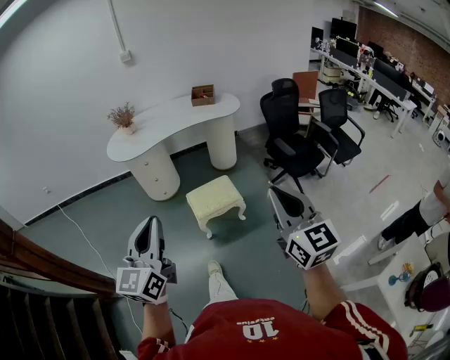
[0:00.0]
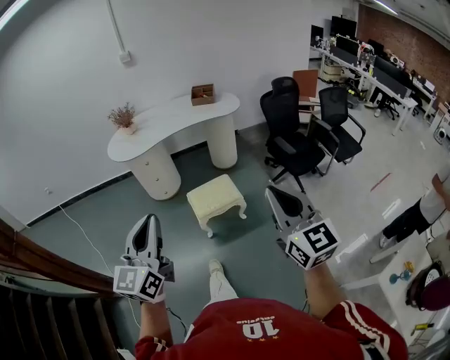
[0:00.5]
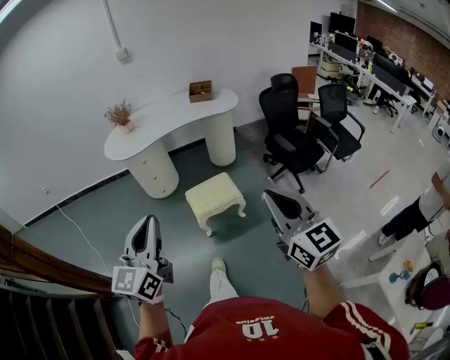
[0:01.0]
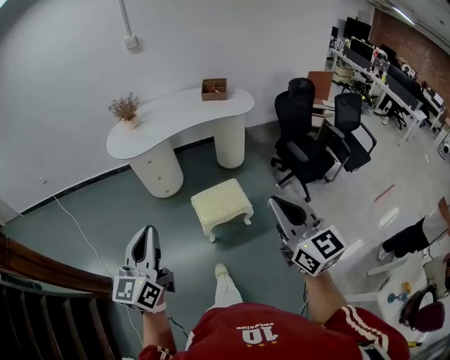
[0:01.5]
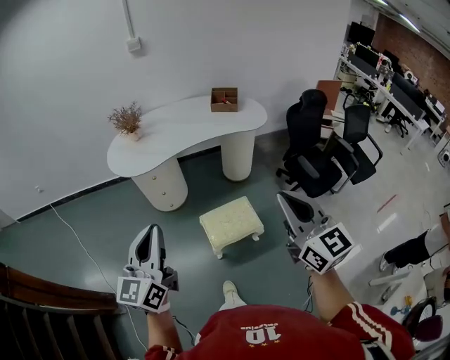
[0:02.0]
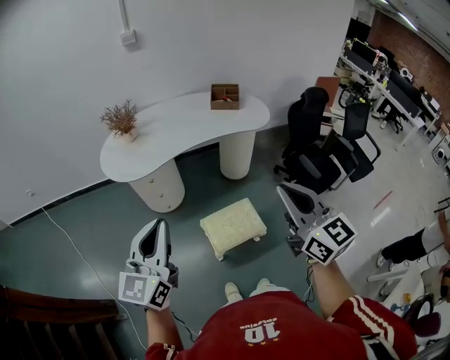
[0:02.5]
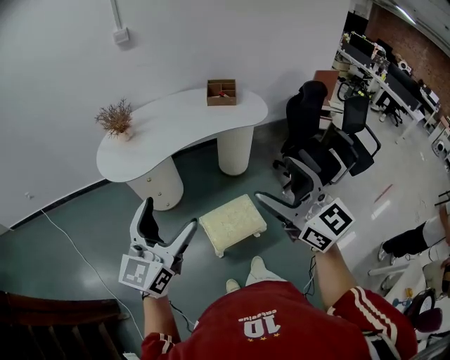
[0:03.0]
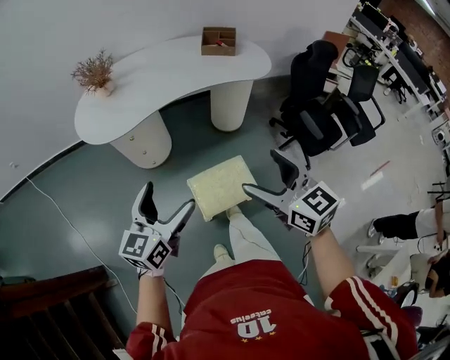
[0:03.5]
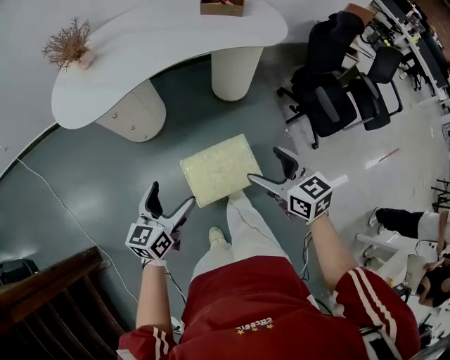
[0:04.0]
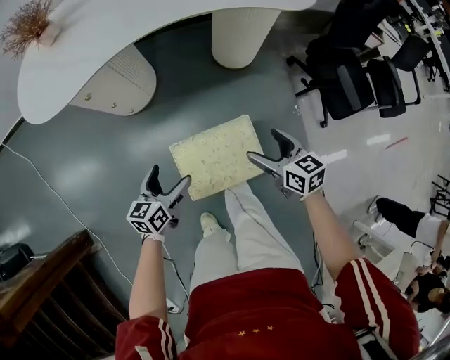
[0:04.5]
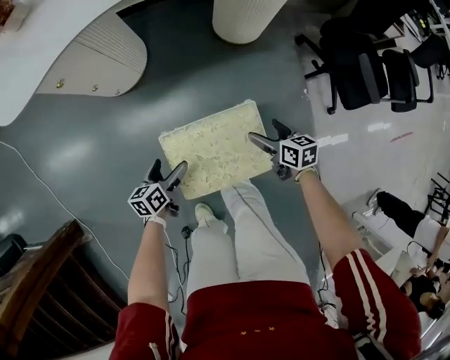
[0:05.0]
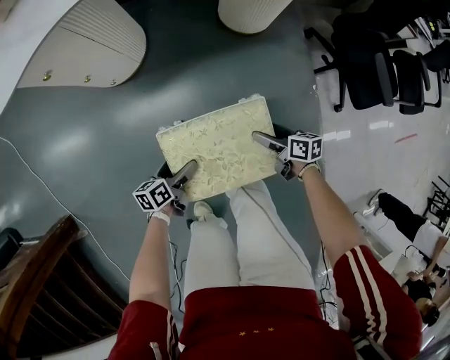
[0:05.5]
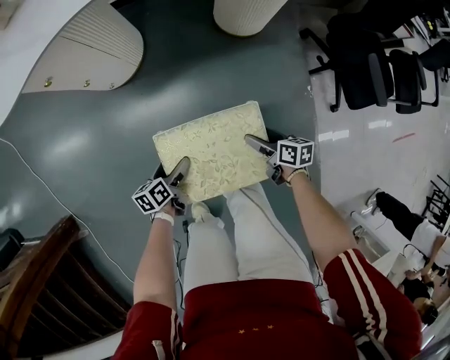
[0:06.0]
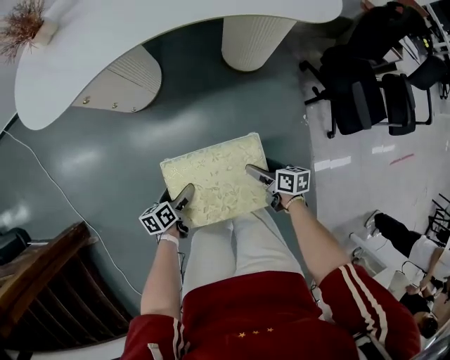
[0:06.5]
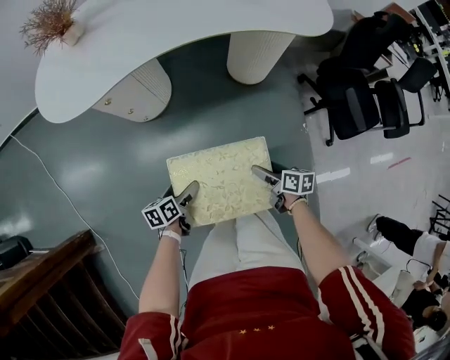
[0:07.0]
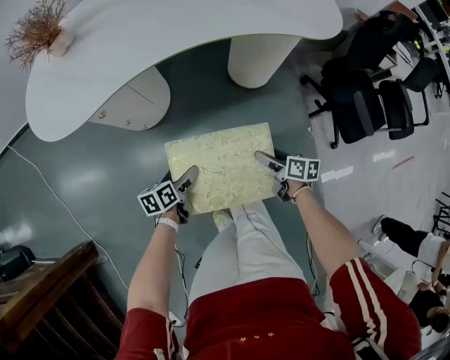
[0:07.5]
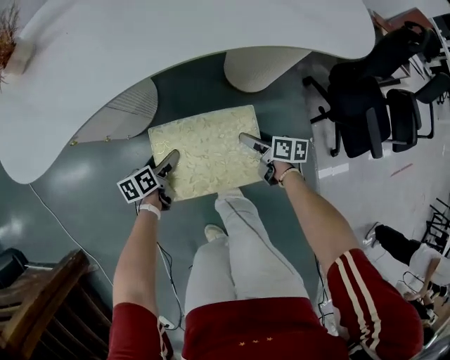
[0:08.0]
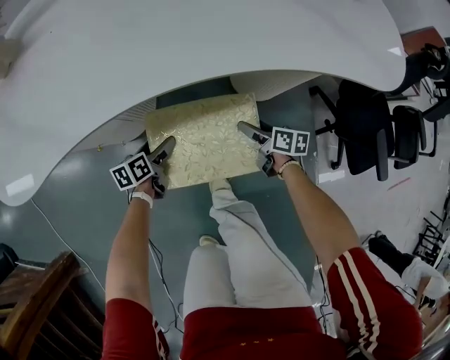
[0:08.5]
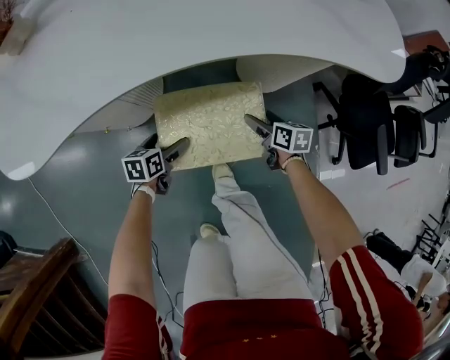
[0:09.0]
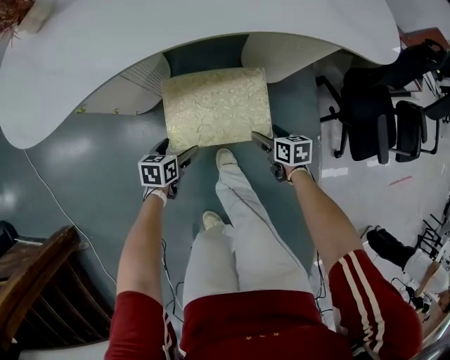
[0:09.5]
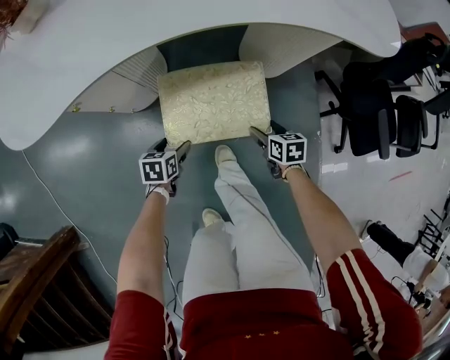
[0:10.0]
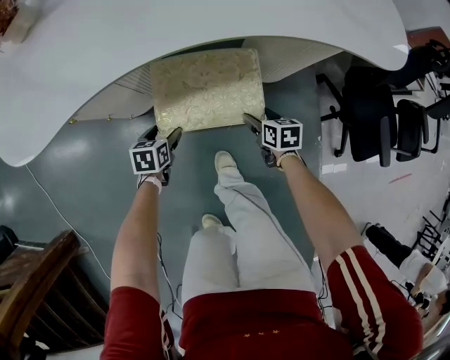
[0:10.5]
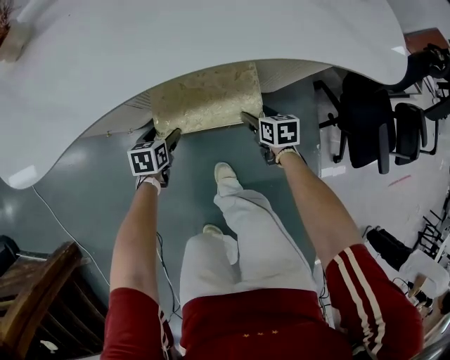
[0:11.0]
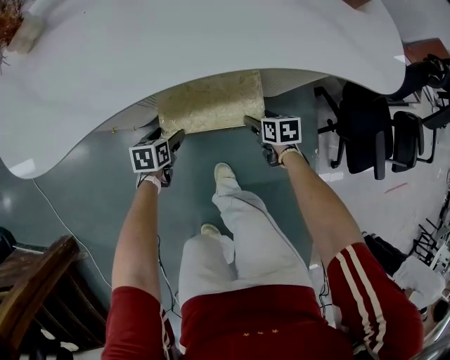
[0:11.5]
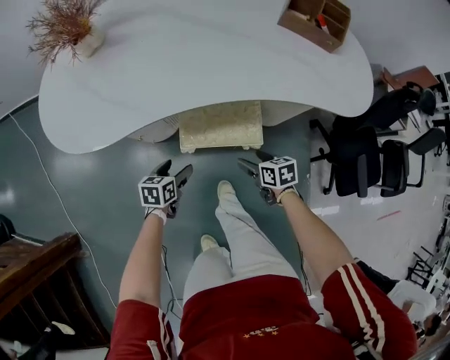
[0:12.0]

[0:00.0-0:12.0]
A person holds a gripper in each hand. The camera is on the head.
0:00.0 to 0:02.0: The two grippers go roughly 25 cm forward.
0:02.0 to 0:04.0: Both grippers move downward and forward, roughly 40 cm. The right gripper changes its angle by roughly 40 degrees, and opens up, while the left gripper rotates some 30 degrees, and opens.
0:04.0 to 0:06.0: The grippers both shift downward by some 50 cm. The right gripper changes its angle by approximately 40 degrees. The left gripper changes its angle by approximately 40 degrees.
0:06.0 to 0:08.0: Both grippers travel together forward, approximately 25 cm.
0:08.0 to 0:10.0: The right gripper goes forward and returns, some 10 cm each way, and turns by about 30 degrees, while the left gripper reaches approximately 10 cm forward, then returns, and rotates some 20 degrees.
0:10.0 to 0:12.0: The left gripper moves upward, approximately 15 cm. The right gripper moves upward and to the left, approximately 15 cm.

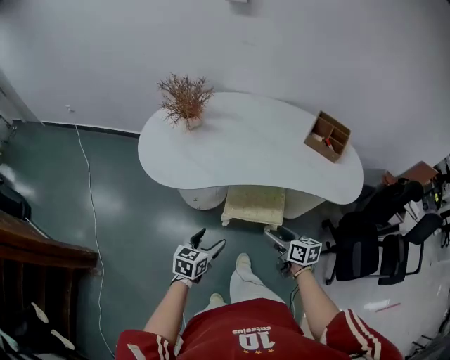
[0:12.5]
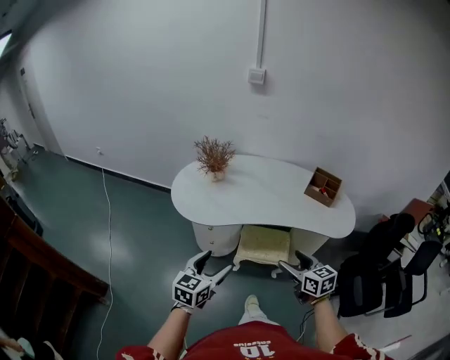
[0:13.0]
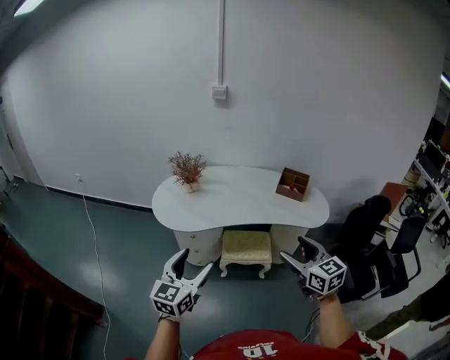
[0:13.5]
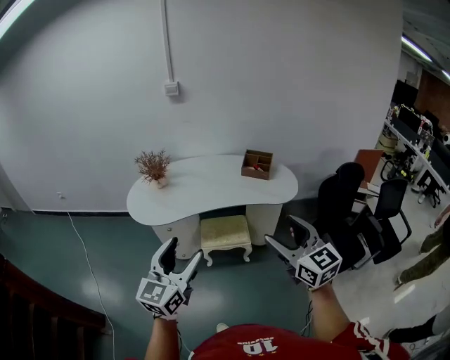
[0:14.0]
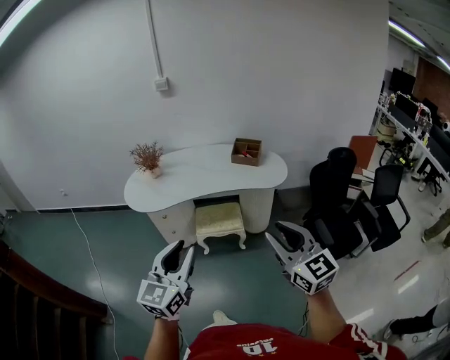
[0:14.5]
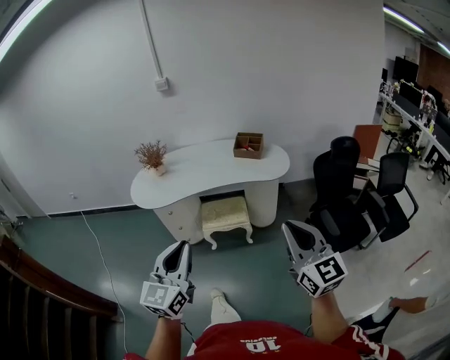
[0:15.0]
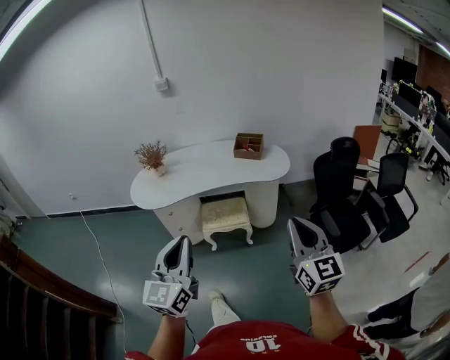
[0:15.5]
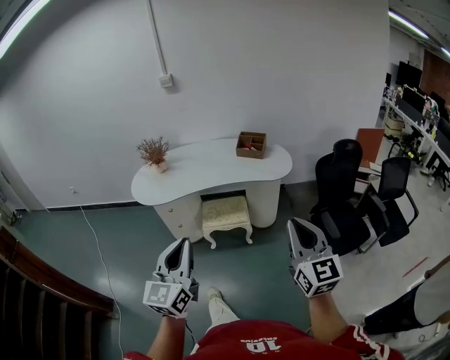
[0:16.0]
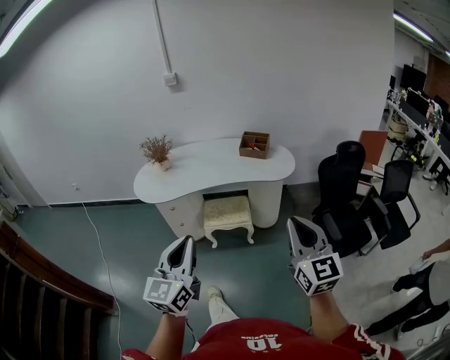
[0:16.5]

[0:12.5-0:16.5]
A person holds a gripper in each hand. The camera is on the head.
0:12.5 to 0:14.5: Both grippers travel together upward and backward, roughly 50 cm. The right gripper tilts its fingers about 30 degrees upward, and closes up. Meanwhile the left gripper points its fingers some 40 degrees further upward, and closes its fingers.
0:14.5 to 0:16.5: The right gripper moves to the right, approximately 5 cm.

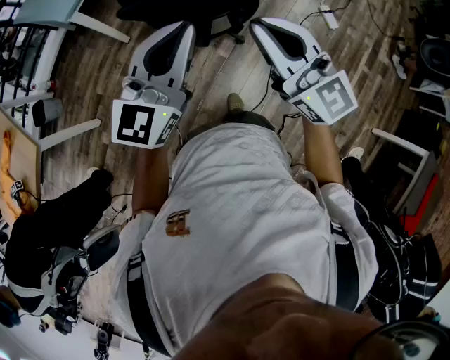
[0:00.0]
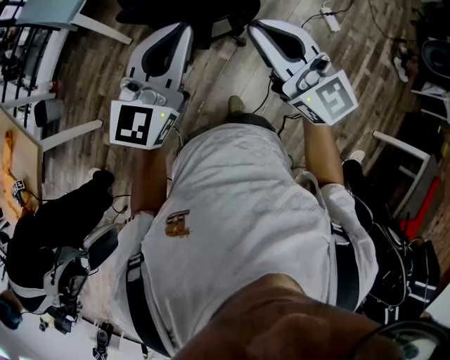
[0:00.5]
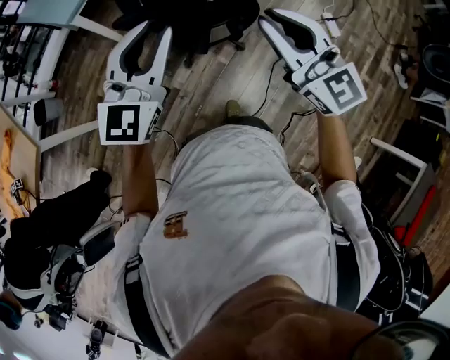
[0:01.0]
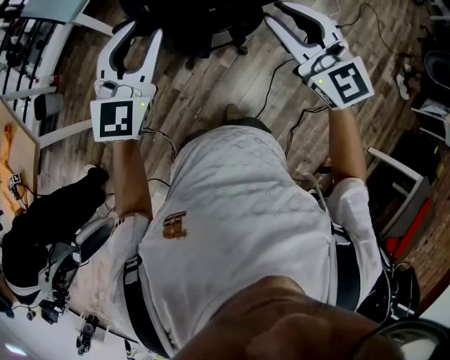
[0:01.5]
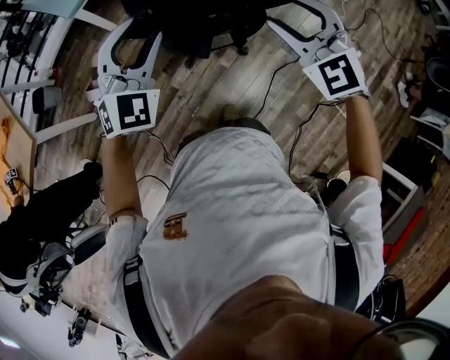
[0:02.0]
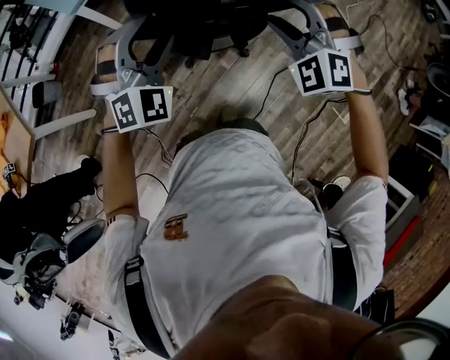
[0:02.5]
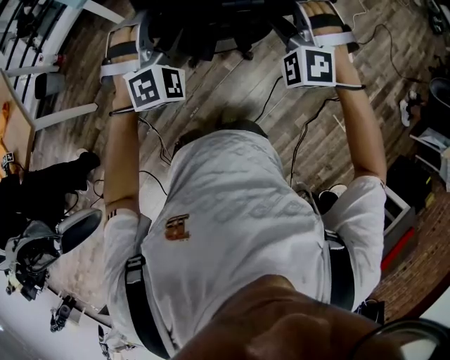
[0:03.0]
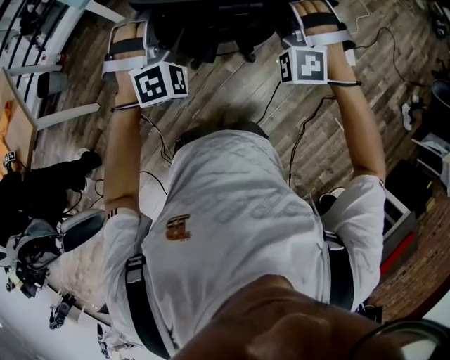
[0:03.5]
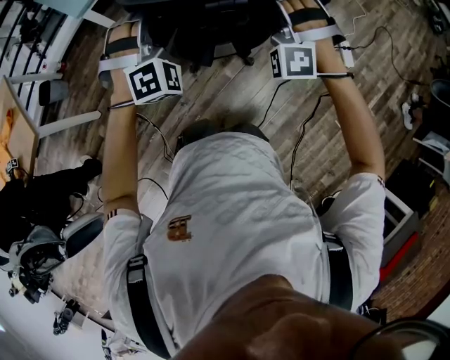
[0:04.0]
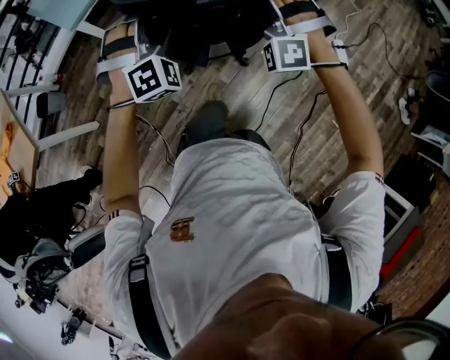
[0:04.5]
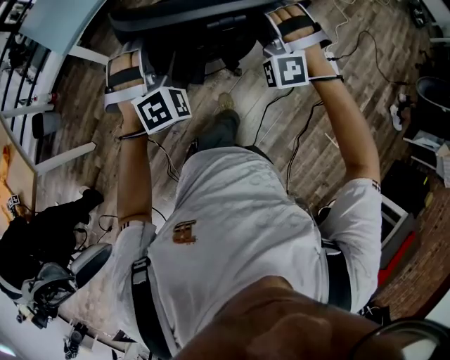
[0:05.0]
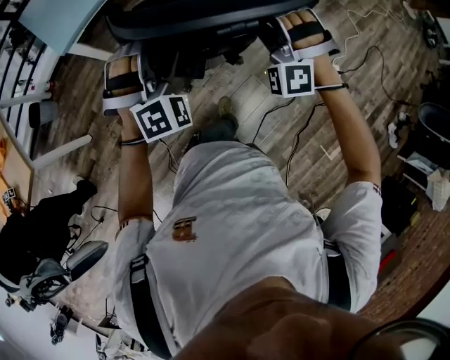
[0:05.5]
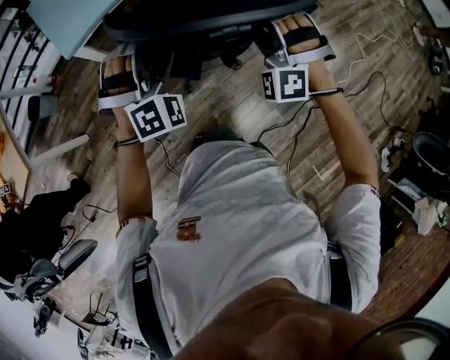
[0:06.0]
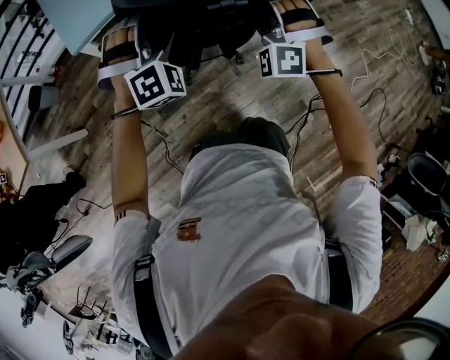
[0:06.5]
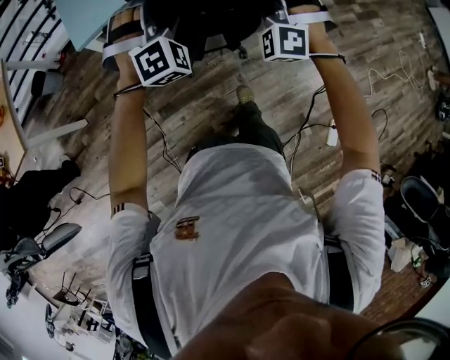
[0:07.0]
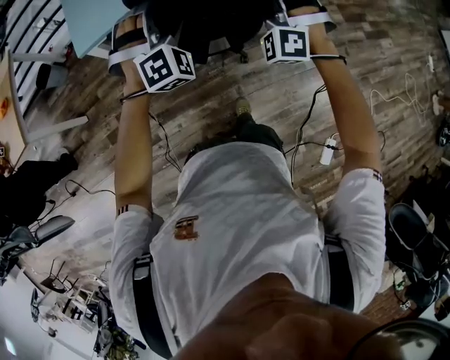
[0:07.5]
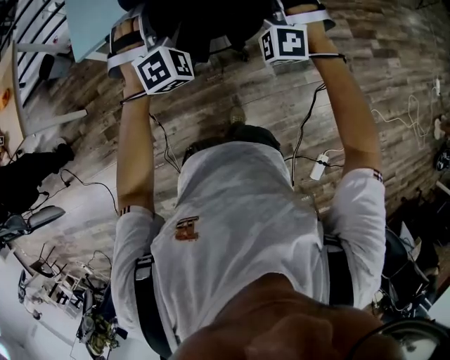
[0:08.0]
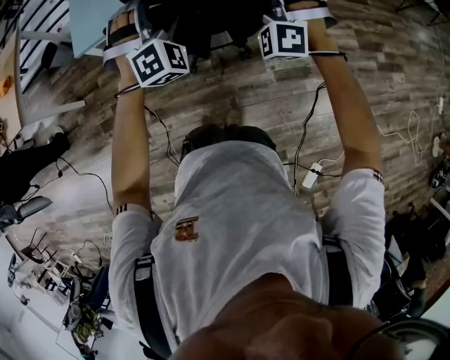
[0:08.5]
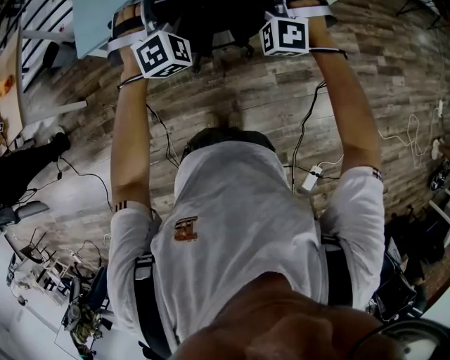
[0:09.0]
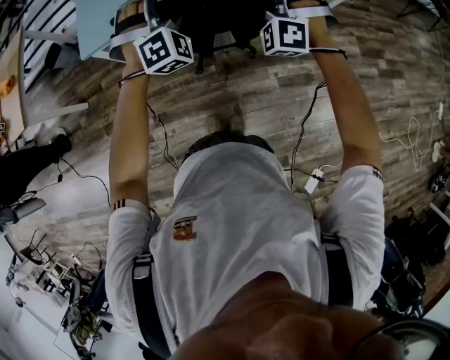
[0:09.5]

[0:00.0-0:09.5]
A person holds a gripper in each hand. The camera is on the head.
0:00.0 to 0:02.0: The left gripper is displaced forward and downward by some 15 cm, rolls clockwise, seen from behind, by about 40 degrees, and opens its fingers, while the right gripper shifts some 20 cm forward, to the right and downward, changes its angle by some 50 degrees, and opens its fingers.
0:02.0 to 0:04.0: The left gripper goes about 15 cm forward, to the right and downward, changes its angle by some 30 degrees, and opens its fingers. The right gripper heads forward and downward, covering approximately 15 cm, and rolls counterclockwise, seen from behind, by approximately 40 degrees.
0:04.0 to 0:05.5: Both grippers move forward, approximately 20 cm.
0:05.5 to 0:07.5: The two grippers travel together, forward, approximately 40 cm. The left gripper changes its angle by about 20 degrees.
0:07.5 to 0:09.5: The two grippers go some 15 cm forward.

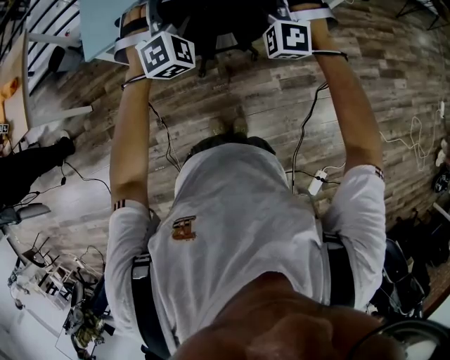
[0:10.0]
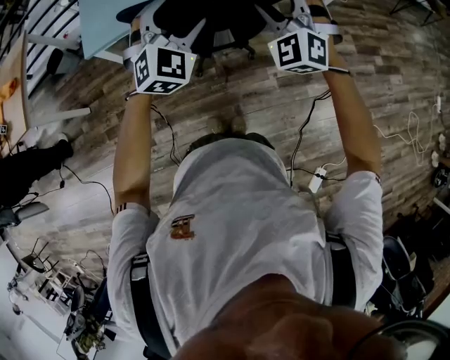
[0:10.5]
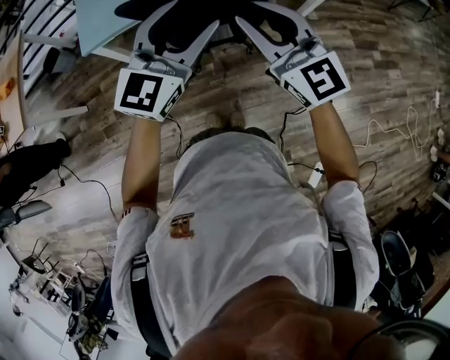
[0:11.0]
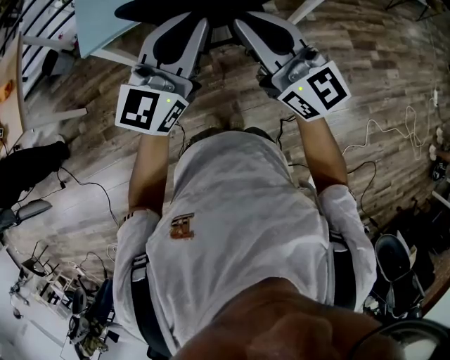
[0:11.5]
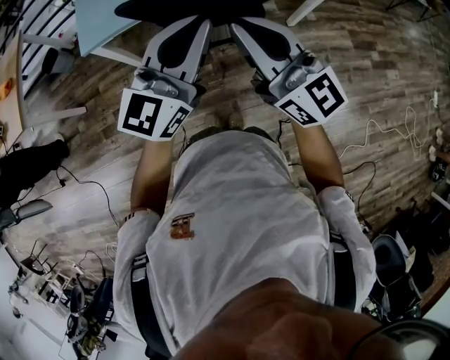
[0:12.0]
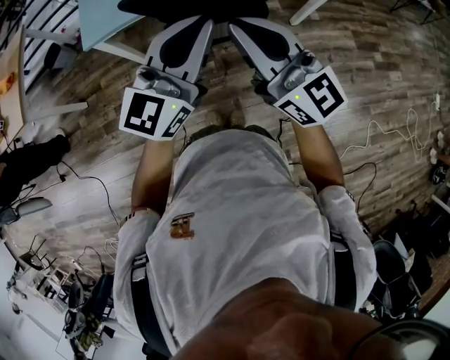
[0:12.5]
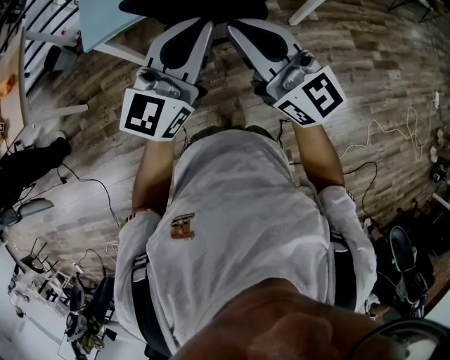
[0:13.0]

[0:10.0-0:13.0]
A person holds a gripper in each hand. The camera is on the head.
0:10.0 to 0:11.5: The two grippers go approximately 20 cm backward and upward. The left gripper rotates around the line of its fingers by approximately 60 degrees, counterclockwise from behind, and closes. The right gripper rolls clockwise, seen from behind, by approximately 80 degrees, and closes.
0:11.5 to 0:13.0: The grippers move only a little.
